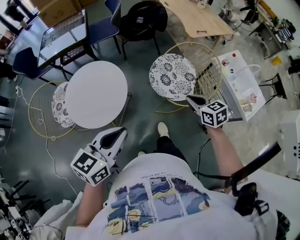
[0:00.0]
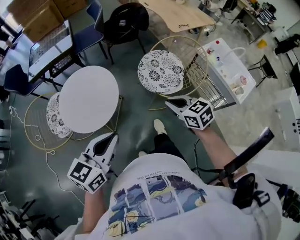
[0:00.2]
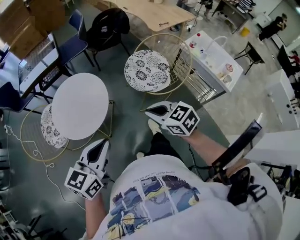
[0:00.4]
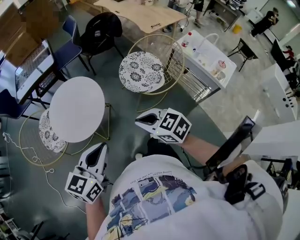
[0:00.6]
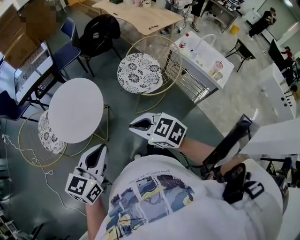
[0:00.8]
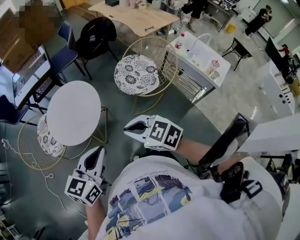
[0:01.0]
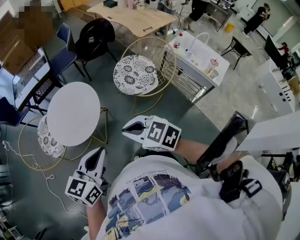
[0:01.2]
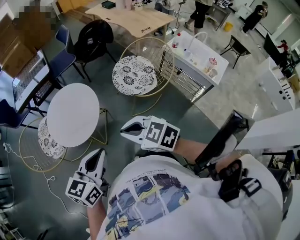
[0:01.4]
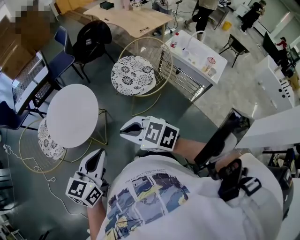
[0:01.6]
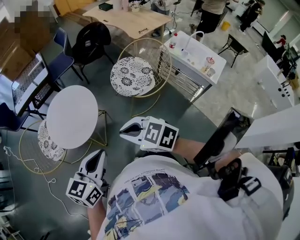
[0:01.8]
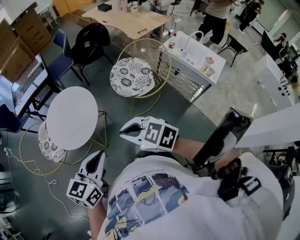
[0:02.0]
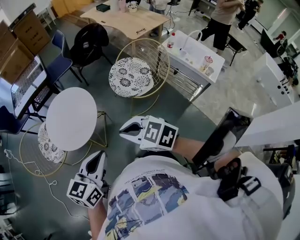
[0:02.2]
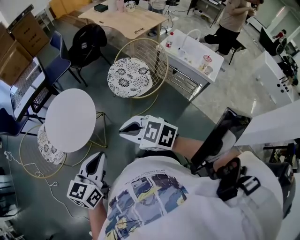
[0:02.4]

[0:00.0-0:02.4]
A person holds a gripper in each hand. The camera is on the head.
0:00.0 to 0:01.2: The left gripper travels backward by roughly 15 cm, while the right gripper is displaced to the left, backward and upward by about 35 cm, and swivels about 20 degrees.
0:01.2 to 0:02.4: The grippers stay close to where they were, moving slightly.

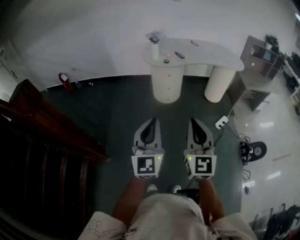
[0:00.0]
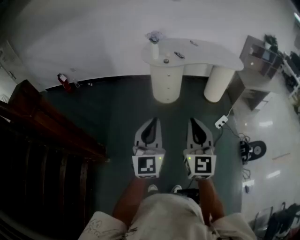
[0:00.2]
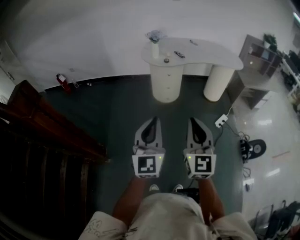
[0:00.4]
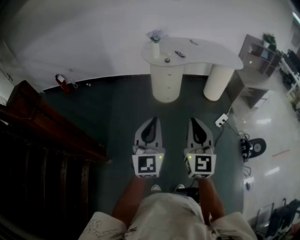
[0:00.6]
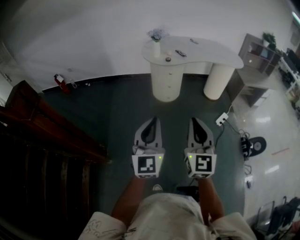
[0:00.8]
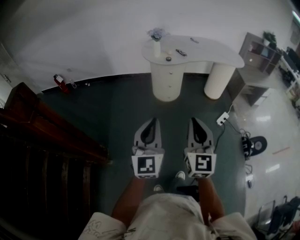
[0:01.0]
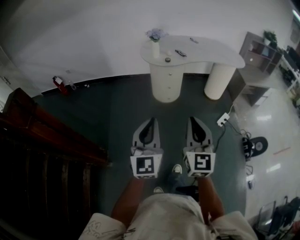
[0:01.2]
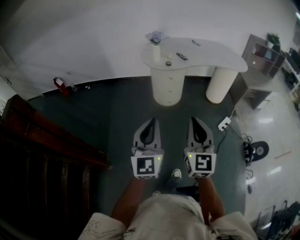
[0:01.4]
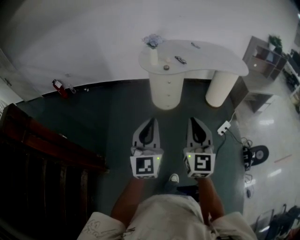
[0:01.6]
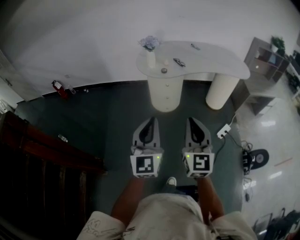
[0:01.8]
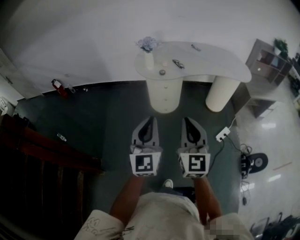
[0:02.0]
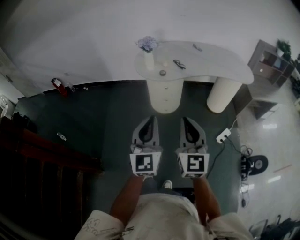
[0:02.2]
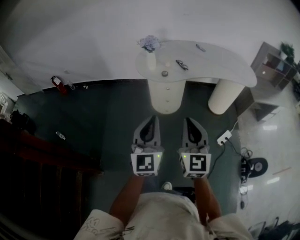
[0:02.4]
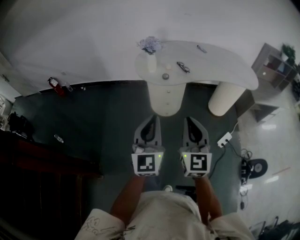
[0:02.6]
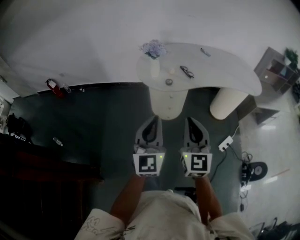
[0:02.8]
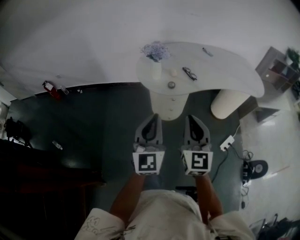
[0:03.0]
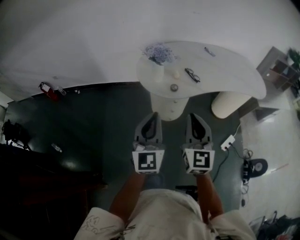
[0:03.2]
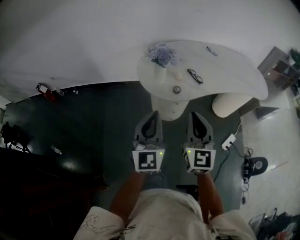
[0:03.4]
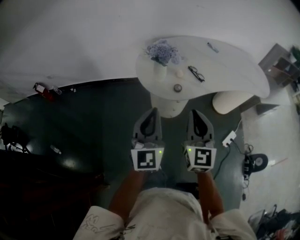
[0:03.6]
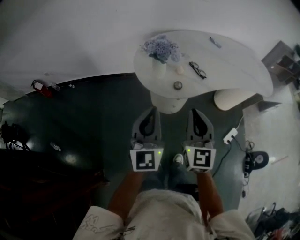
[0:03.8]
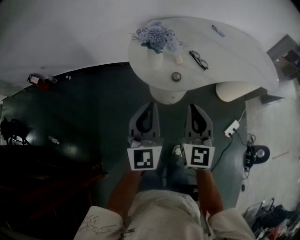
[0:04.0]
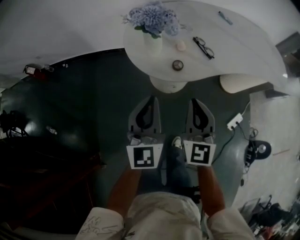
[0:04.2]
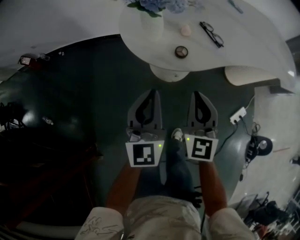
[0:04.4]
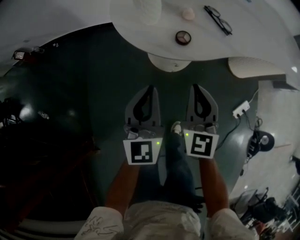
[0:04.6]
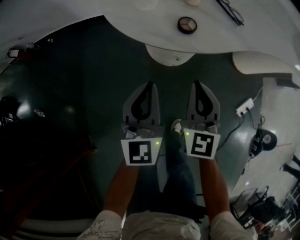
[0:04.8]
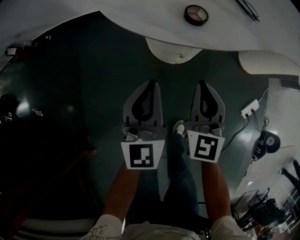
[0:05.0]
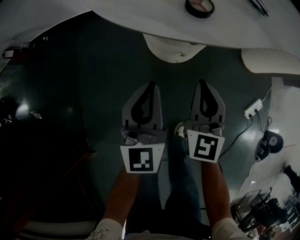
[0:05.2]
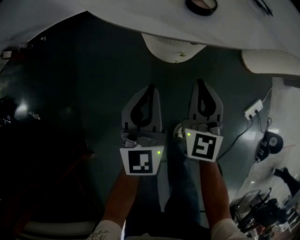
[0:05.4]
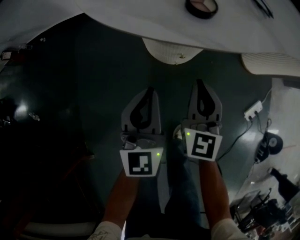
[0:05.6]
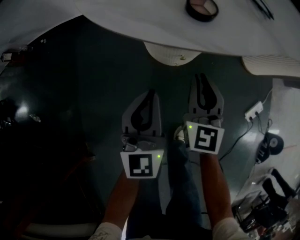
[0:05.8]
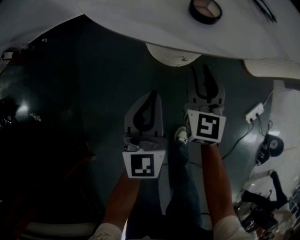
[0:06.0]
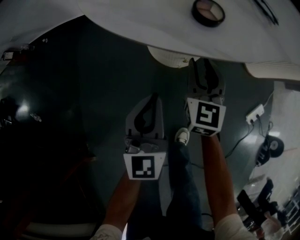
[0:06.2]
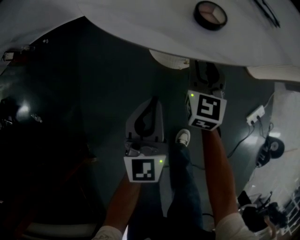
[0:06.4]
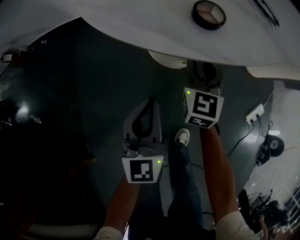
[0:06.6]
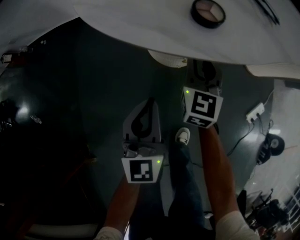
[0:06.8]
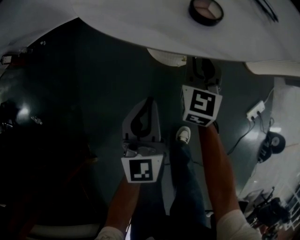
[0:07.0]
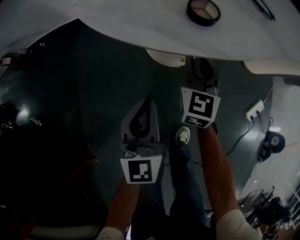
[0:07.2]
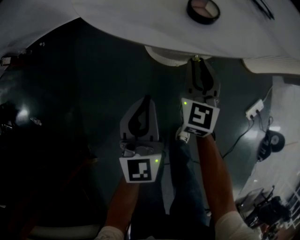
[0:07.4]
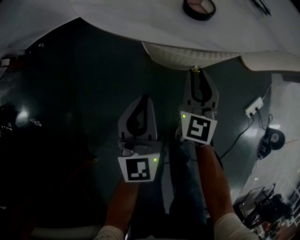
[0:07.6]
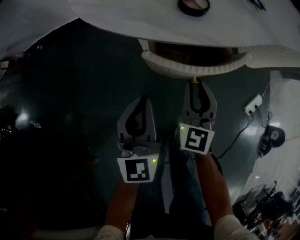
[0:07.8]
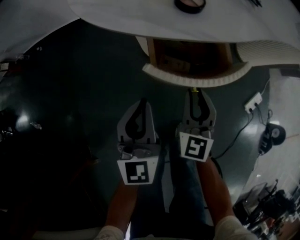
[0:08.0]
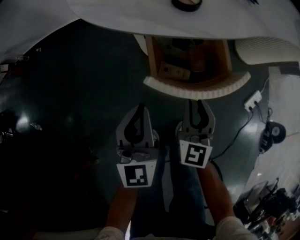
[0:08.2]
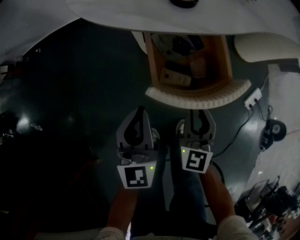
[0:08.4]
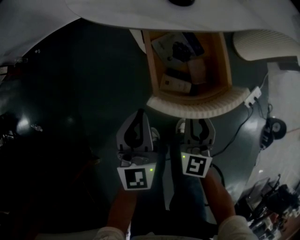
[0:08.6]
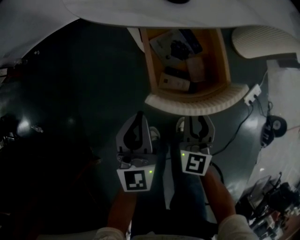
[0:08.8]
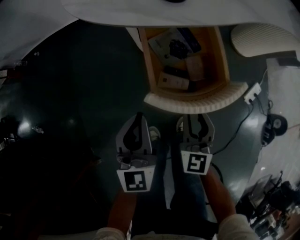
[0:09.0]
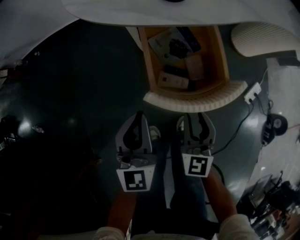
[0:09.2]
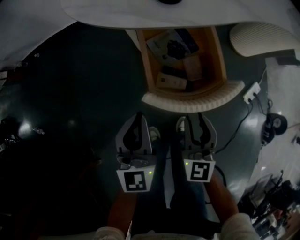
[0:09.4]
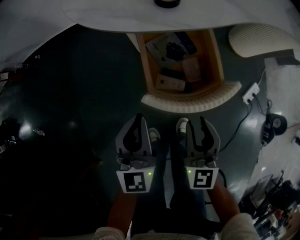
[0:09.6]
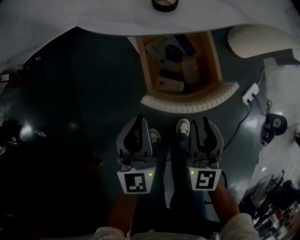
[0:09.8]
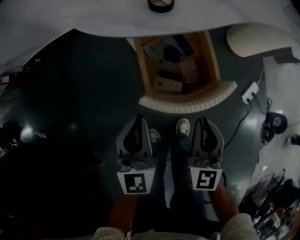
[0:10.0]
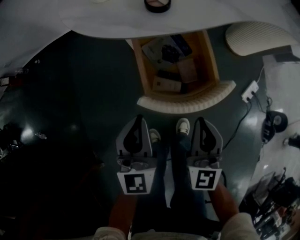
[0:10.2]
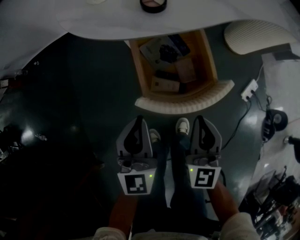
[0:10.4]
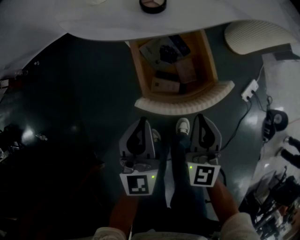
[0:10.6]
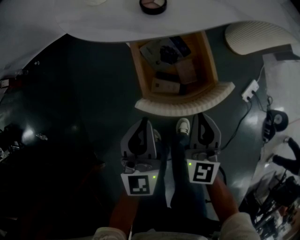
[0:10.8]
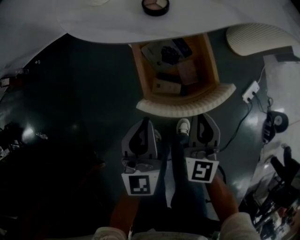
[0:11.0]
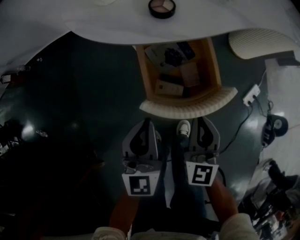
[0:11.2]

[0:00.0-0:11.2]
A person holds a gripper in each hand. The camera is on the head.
0:00.0 to 0:01.6: The two grippers go about 15 cm forward.
0:01.6 to 0:03.2: Both grippers move forward, roughly 35 cm.
0:03.2 to 0:04.8: The grippers both shift downward and forward by about 35 cm.
0:04.8 to 0:06.4: The left gripper goes roughly 10 cm downward, while the right gripper moves downward and forward, approximately 20 cm, and opens up.
0:06.4 to 0:08.0: The right gripper heads backward, covering about 15 cm.
0:08.0 to 0:09.6: The left gripper moves backward, roughly 5 cm, while the right gripper travels backward and upward by roughly 10 cm.
0:09.6 to 0:11.2: The right gripper closes up.

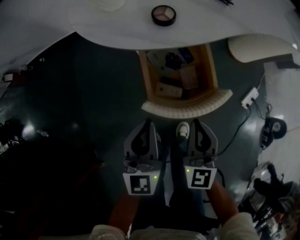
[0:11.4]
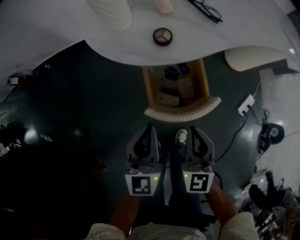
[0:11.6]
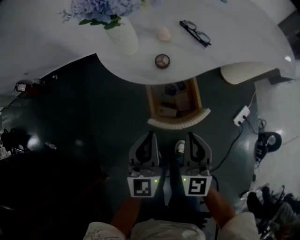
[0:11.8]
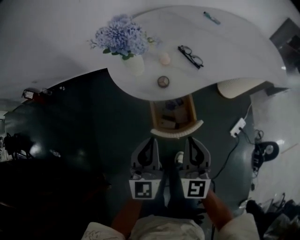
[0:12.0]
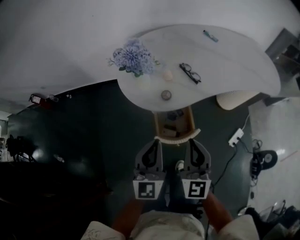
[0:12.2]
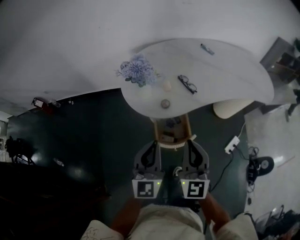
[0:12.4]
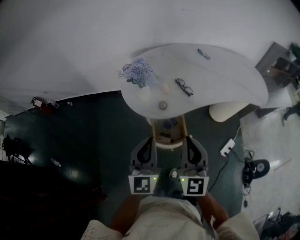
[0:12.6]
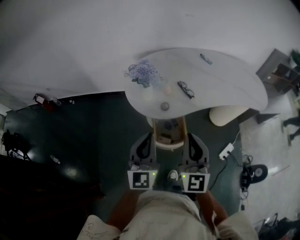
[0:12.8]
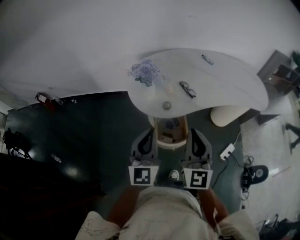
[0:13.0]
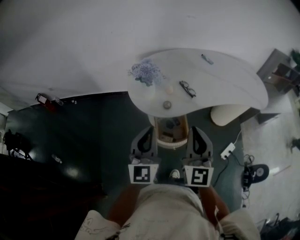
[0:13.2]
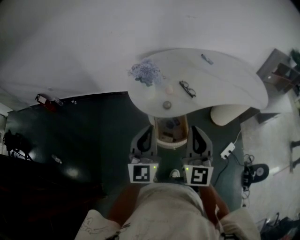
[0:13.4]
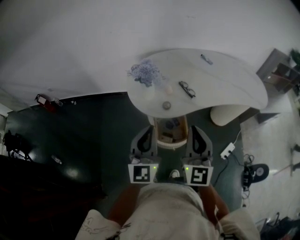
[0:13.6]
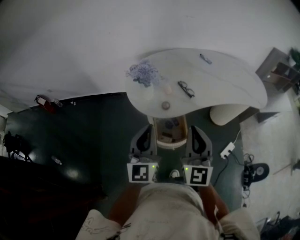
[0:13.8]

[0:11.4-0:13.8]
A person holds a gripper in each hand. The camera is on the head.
0:11.4 to 0:12.6: The two grippers go about 35 cm upward.
0:12.6 to 0:13.8: The grippers move only a little.

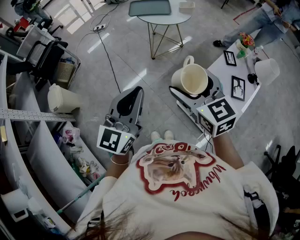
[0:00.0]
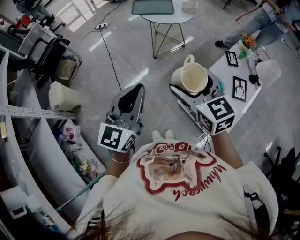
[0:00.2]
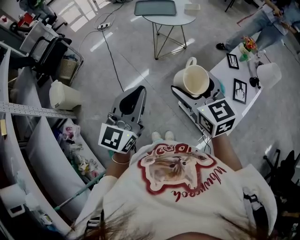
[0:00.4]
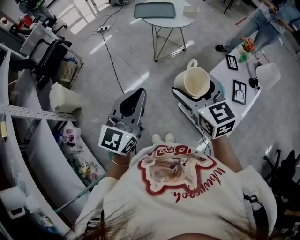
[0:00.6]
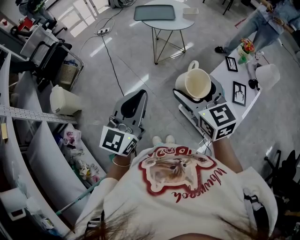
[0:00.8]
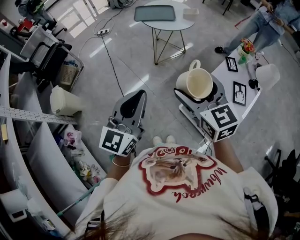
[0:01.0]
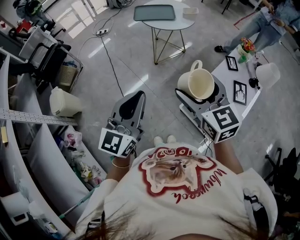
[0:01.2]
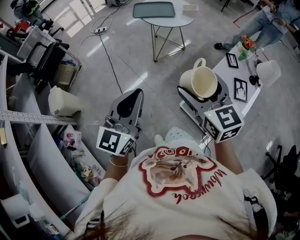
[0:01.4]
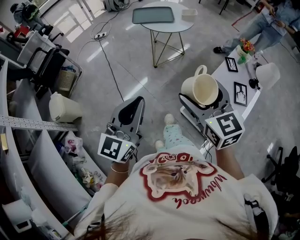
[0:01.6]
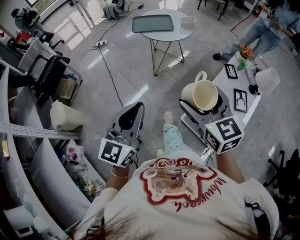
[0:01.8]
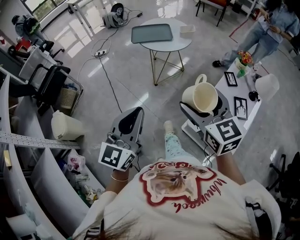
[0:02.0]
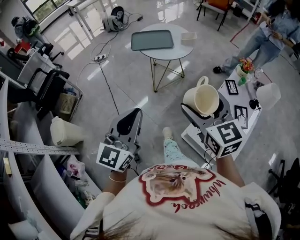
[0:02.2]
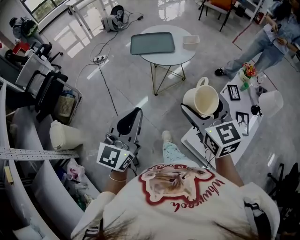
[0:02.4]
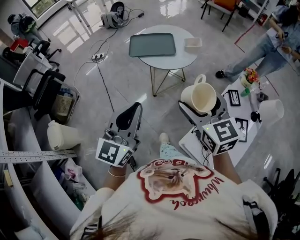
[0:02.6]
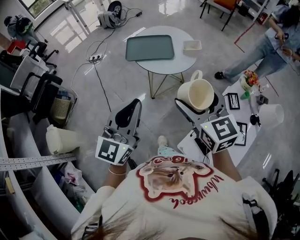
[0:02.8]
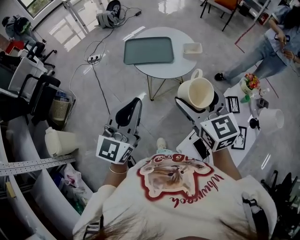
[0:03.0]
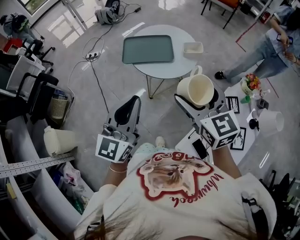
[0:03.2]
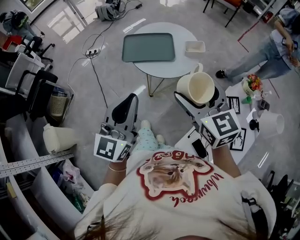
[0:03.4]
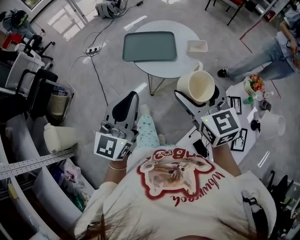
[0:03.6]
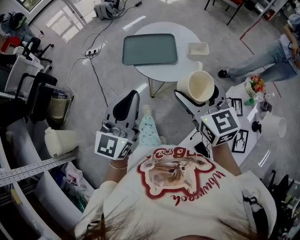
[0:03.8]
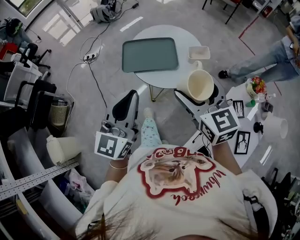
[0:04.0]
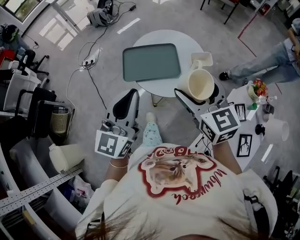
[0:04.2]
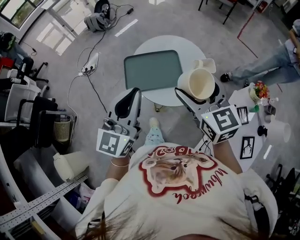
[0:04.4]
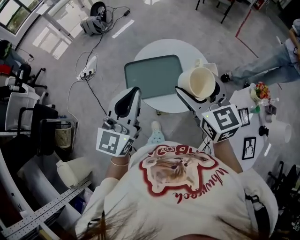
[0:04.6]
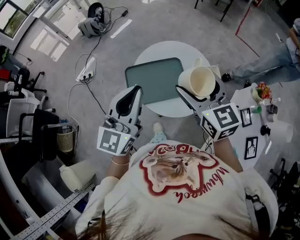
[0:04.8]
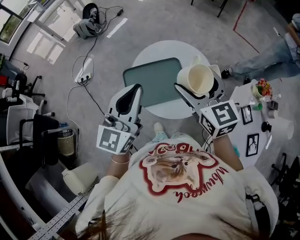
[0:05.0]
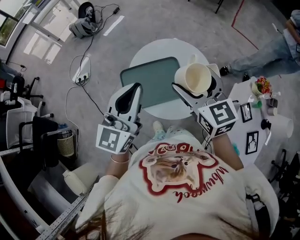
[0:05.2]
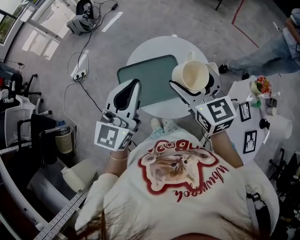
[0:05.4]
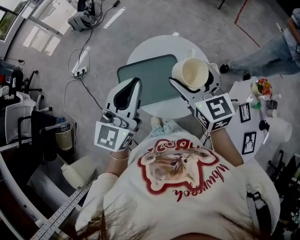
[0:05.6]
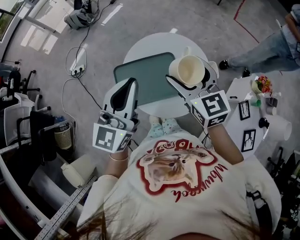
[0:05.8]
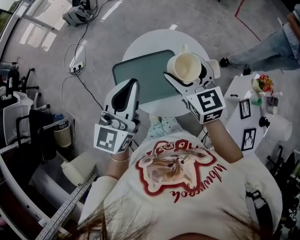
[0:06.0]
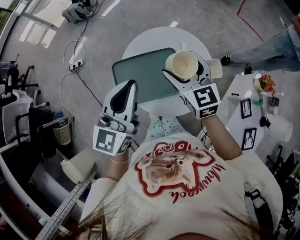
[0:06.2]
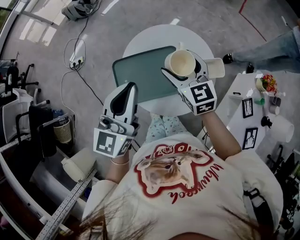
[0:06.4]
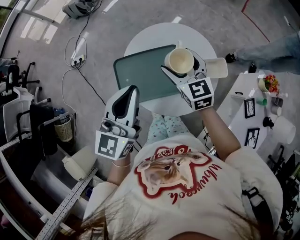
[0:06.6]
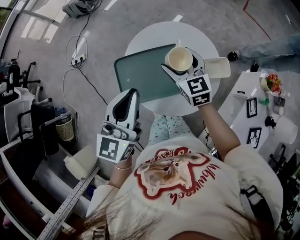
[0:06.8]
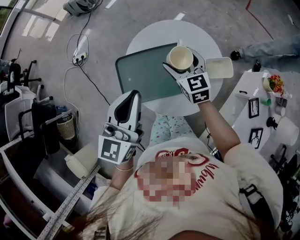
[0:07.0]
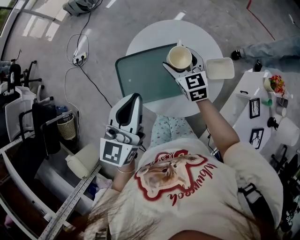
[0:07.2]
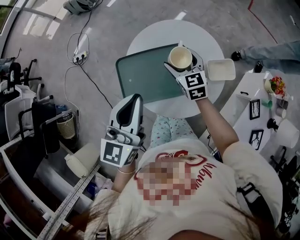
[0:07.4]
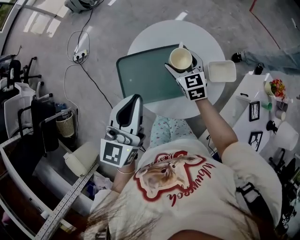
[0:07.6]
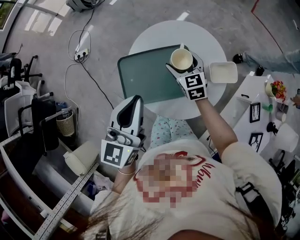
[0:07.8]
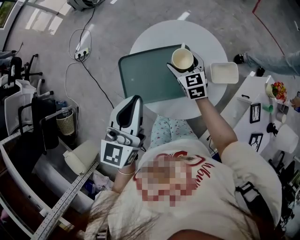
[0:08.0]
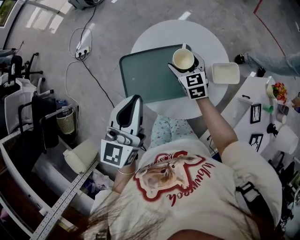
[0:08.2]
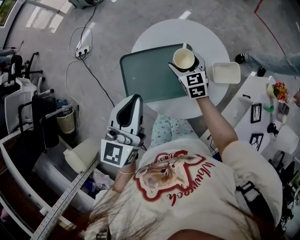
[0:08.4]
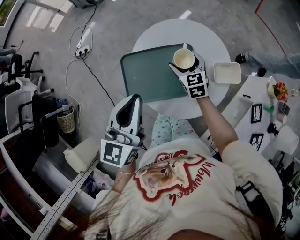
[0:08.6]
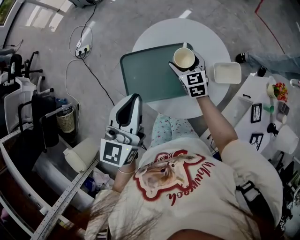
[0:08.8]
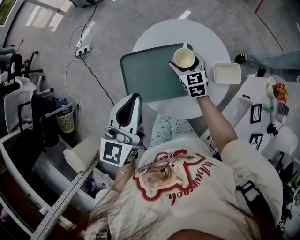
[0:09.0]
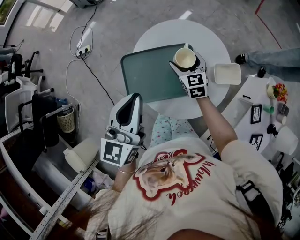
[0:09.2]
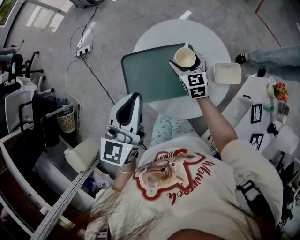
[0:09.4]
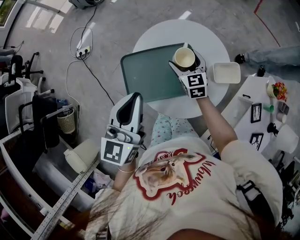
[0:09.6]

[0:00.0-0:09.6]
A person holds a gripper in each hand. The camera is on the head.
0:00.0 to 0:01.6: The grippers move only a little.
0:01.6 to 0:03.2: The grippers both shift forward by roughly 40 cm.
0:03.2 to 0:04.8: Both grippers move forward, roughly 30 cm.
0:04.8 to 0:06.4: The right gripper goes roughly 20 cm downward and forward. The left gripper is displaced forward and downward by roughly 10 cm.
0:06.4 to 0:08.0: The left gripper shifts by approximately 5 cm; the right gripper travels downward by some 15 cm.
0:08.0 to 0:09.6: The grippers make only small movements.
